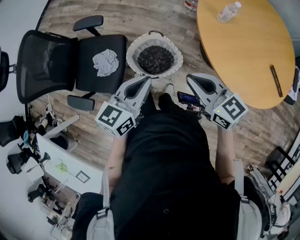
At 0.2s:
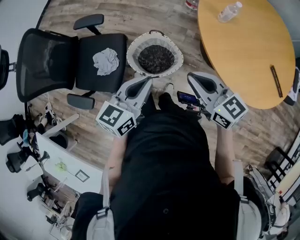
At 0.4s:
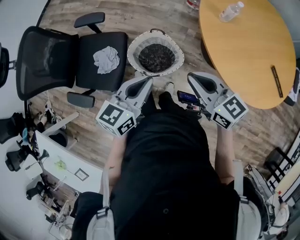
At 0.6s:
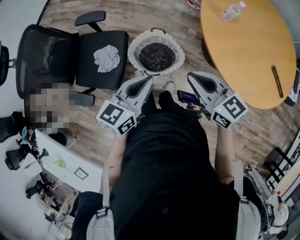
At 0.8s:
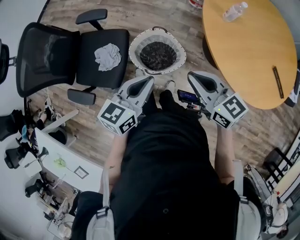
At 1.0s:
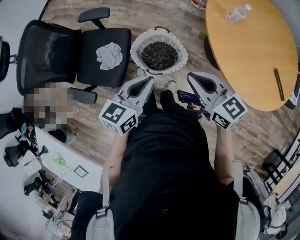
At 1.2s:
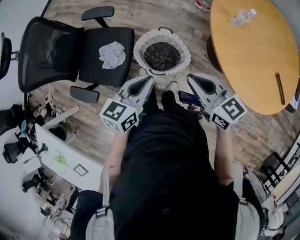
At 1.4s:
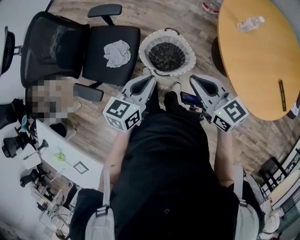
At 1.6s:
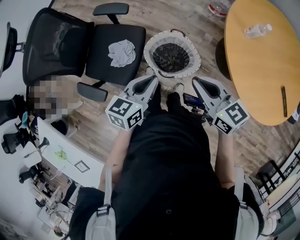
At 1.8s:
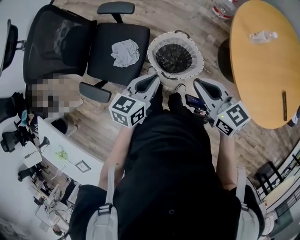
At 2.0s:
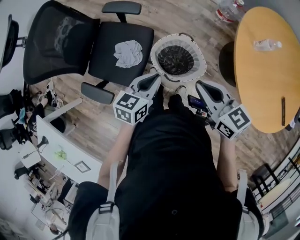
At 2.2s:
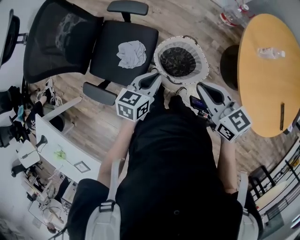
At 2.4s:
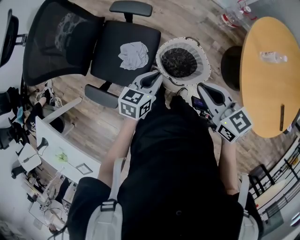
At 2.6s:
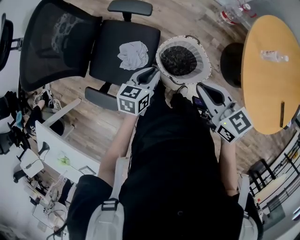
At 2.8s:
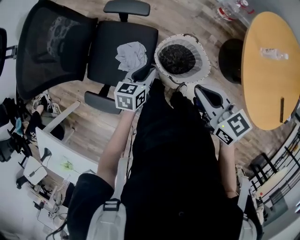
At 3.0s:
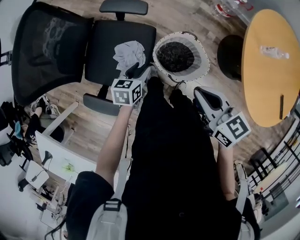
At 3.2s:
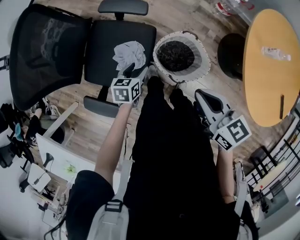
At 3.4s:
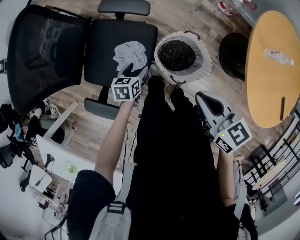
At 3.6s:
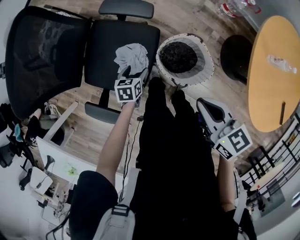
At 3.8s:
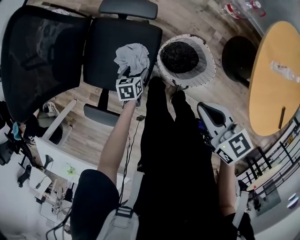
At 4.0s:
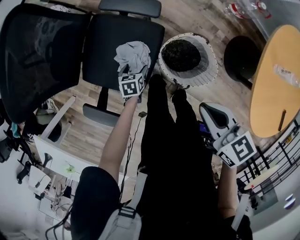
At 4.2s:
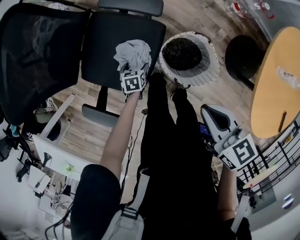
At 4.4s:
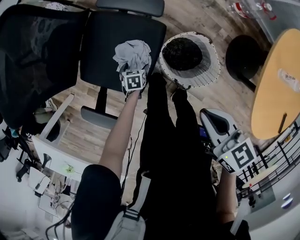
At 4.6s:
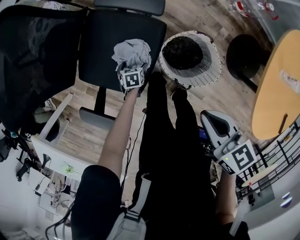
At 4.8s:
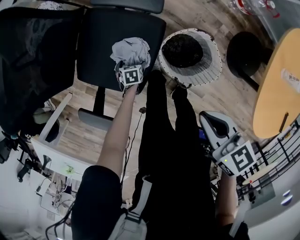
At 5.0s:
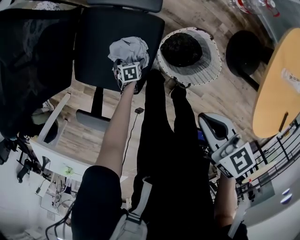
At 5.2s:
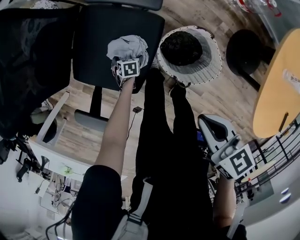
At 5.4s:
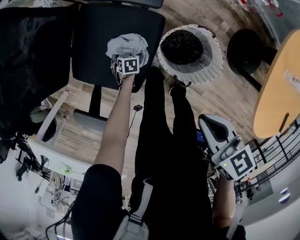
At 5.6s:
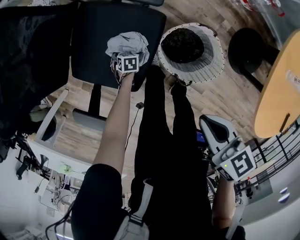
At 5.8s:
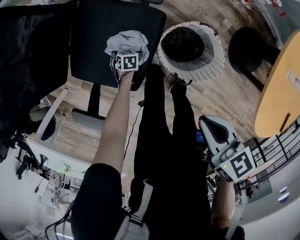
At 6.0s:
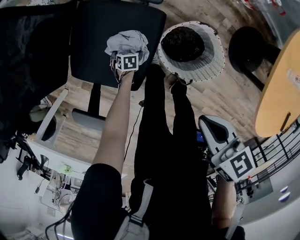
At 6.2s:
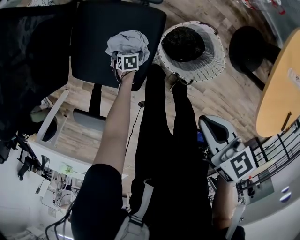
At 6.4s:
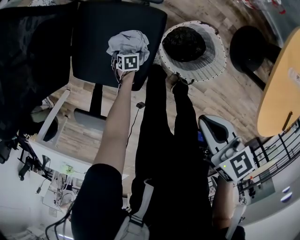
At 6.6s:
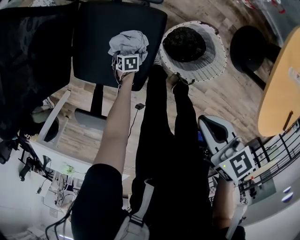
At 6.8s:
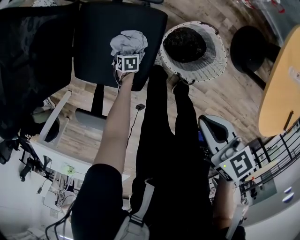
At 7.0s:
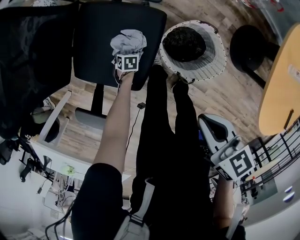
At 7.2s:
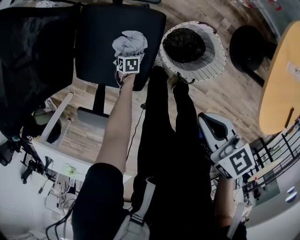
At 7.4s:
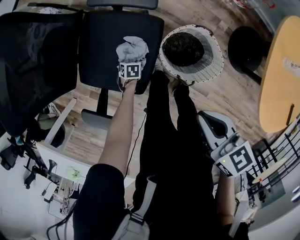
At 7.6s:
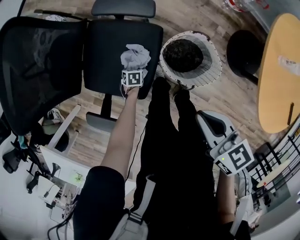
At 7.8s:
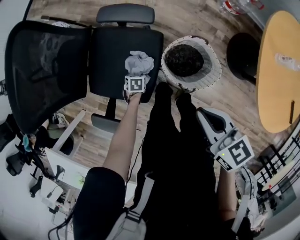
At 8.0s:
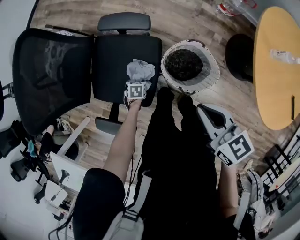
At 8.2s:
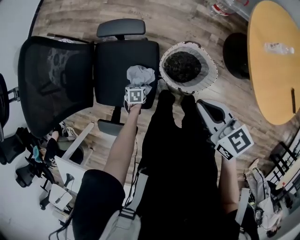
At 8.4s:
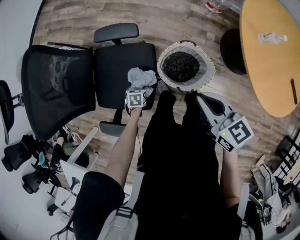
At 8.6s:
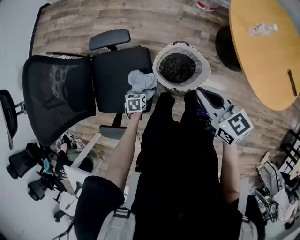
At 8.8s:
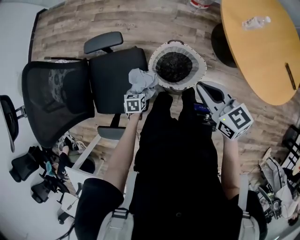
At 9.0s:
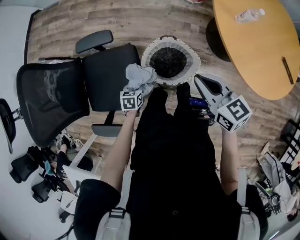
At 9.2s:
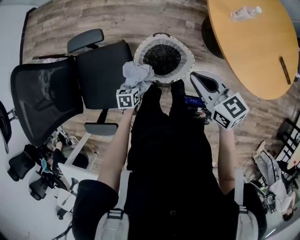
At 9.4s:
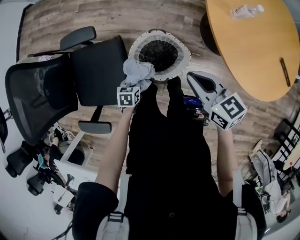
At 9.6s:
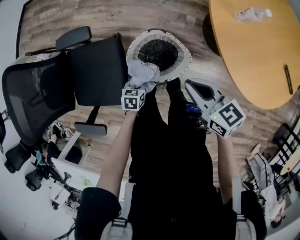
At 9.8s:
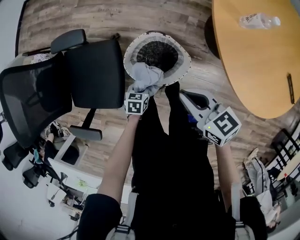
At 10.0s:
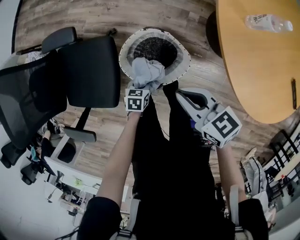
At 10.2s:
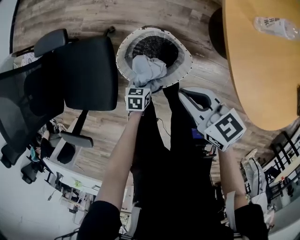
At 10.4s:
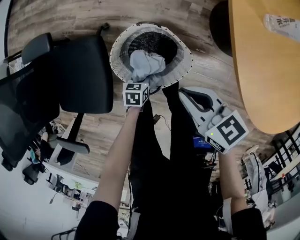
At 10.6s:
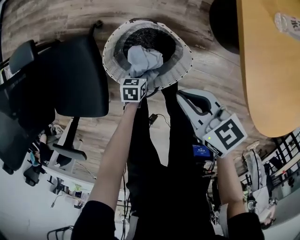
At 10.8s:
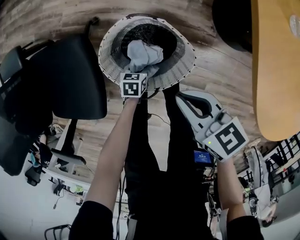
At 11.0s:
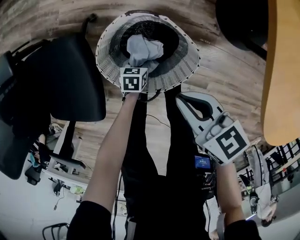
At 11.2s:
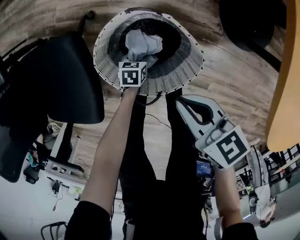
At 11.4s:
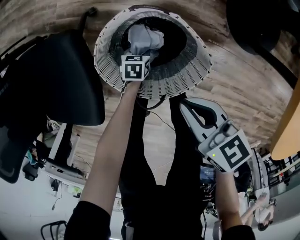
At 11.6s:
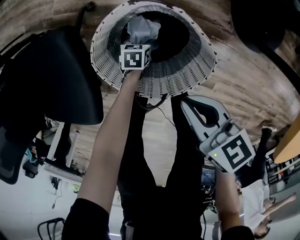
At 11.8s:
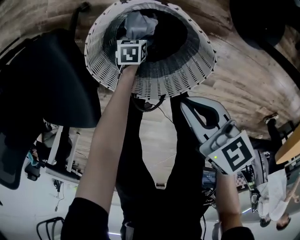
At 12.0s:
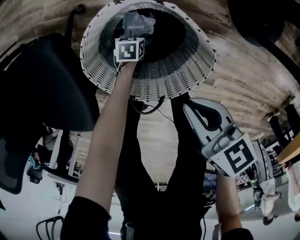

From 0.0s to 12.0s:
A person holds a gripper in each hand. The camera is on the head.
From 0.0s to 1.6s: The left gripper heads to the left and downward, covering about 10 cm, while the right gripper moves to the left, roughly 10 cm.
From 1.6s to 3.0s: The right gripper travels to the left and forward by some 15 cm. Meanwhile the left gripper moves to the left, downward and forward, about 30 cm.
From 3.0s to 4.4s: The left gripper heads downward, covering roughly 25 cm, rotates about 30 degrees, and opens up; the right gripper shifts approximately 10 cm forward and downward.
From 4.4s to 6.0s: The right gripper moves some 5 cm; the left gripper moves downward, approximately 10 cm.
From 6.0s to 7.6s: The left gripper is displaced upward by roughly 5 cm, and closes.
From 7.6s to 9.0s: The right gripper moves some 15 cm, and rotates approximately 20 degrees. Meanwhile the left gripper shifts approximately 20 cm upward, and rotates roughly 20 degrees.
From 9.0s to 10.4s: The right gripper moves downward and to the right, roughly 20 cm. Meanwhile the left gripper is displaced to the right and downward by about 25 cm.
From 10.4s to 12.0s: The two grippers go about 25 cm downward.

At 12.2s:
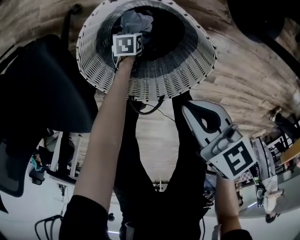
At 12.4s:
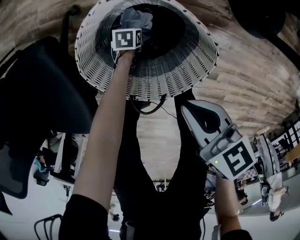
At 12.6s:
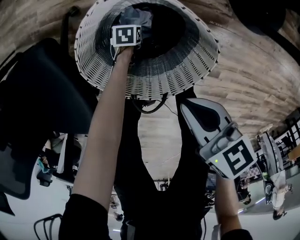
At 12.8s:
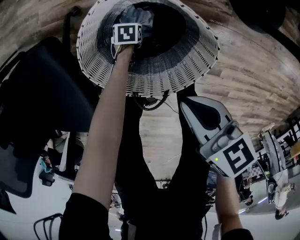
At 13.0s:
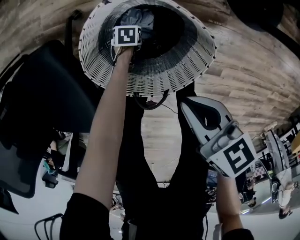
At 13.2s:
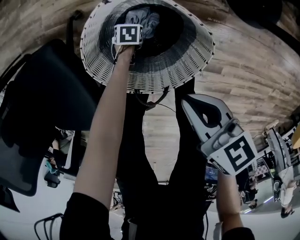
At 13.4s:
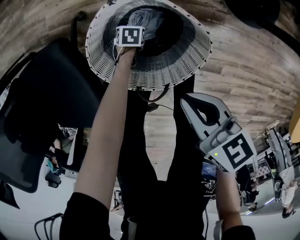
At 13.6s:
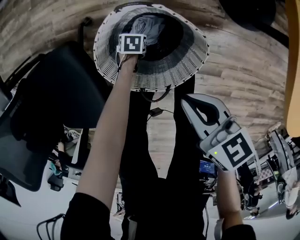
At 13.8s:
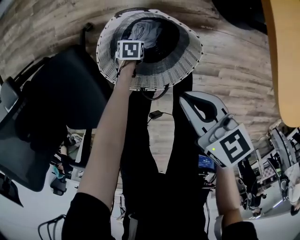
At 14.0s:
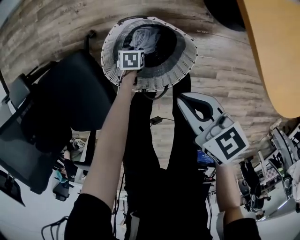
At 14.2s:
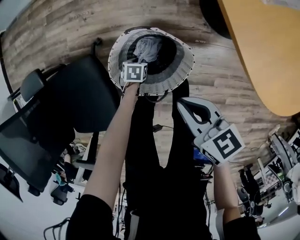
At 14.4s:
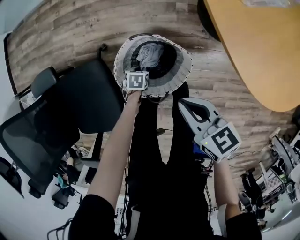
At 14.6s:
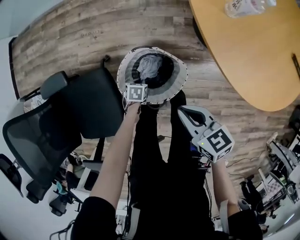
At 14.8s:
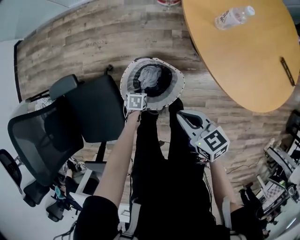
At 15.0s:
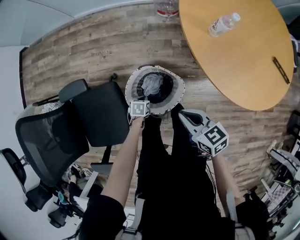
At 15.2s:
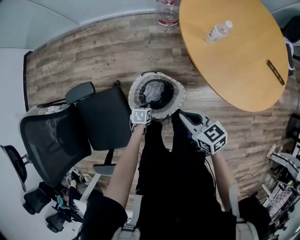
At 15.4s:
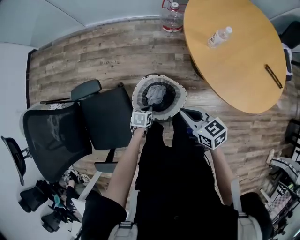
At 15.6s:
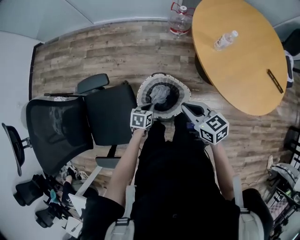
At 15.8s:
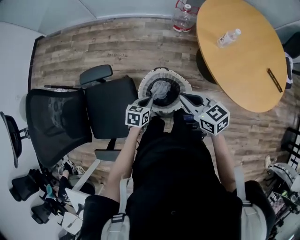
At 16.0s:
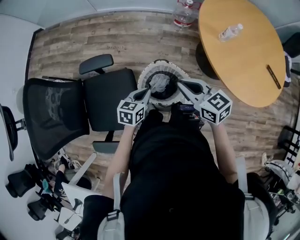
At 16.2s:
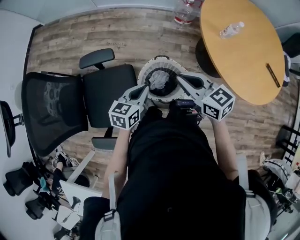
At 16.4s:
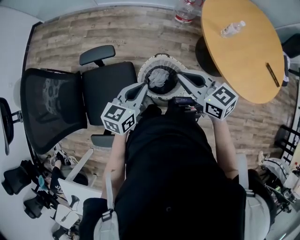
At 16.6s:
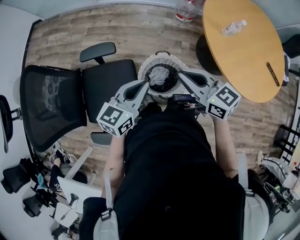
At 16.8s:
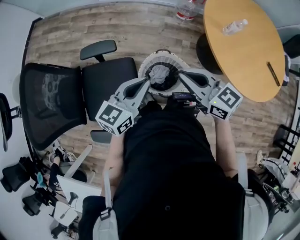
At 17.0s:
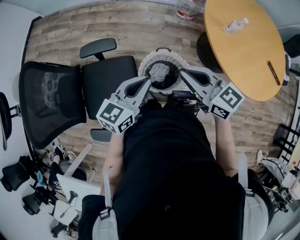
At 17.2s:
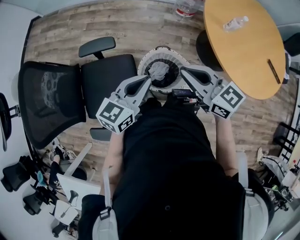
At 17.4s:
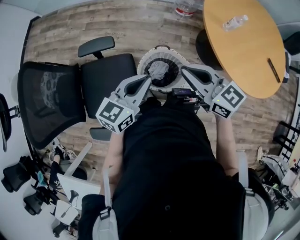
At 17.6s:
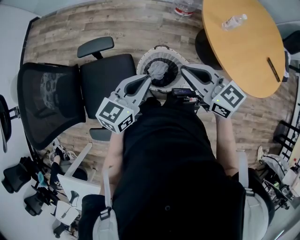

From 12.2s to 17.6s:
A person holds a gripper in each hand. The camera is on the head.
From 12.2s to 13.6s: The grippers both shift upward by approximately 10 cm.
From 13.6s to 15.0s: Both grippers move upward, some 30 cm.
From 15.0s to 16.2s: The left gripper moves upward, approximately 35 cm, and points its fingers about 40 degrees further upward. The right gripper shifts roughly 20 cm upward and to the left.
From 16.2s to 17.6s: The left gripper heads upward, covering some 10 cm.

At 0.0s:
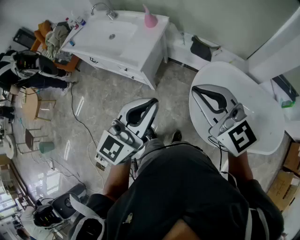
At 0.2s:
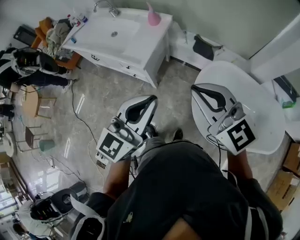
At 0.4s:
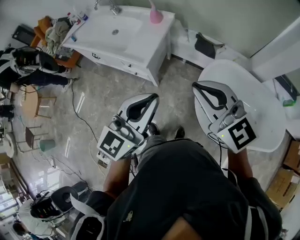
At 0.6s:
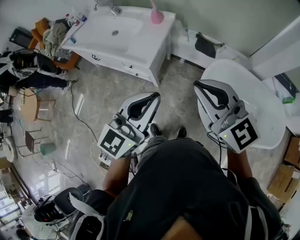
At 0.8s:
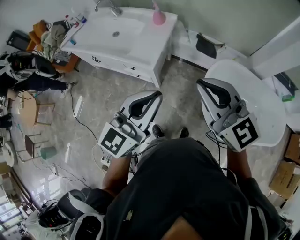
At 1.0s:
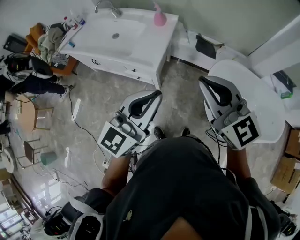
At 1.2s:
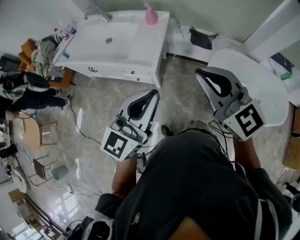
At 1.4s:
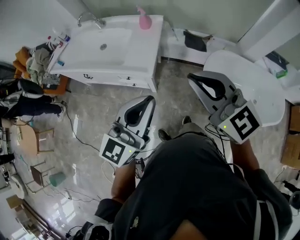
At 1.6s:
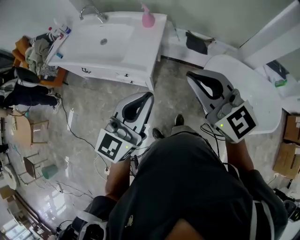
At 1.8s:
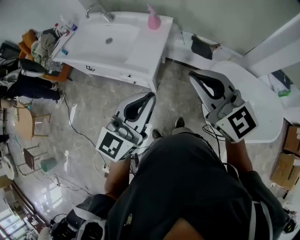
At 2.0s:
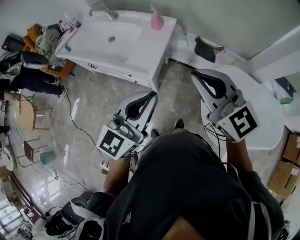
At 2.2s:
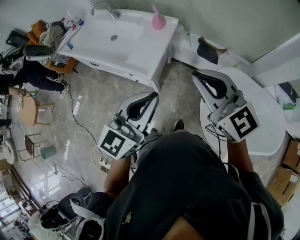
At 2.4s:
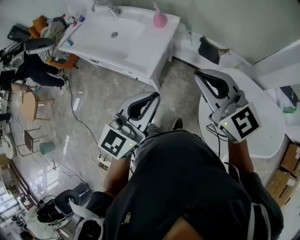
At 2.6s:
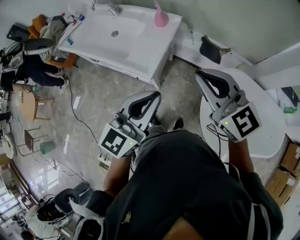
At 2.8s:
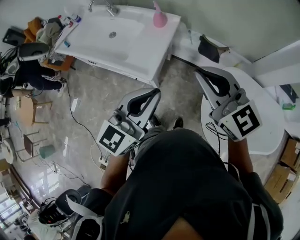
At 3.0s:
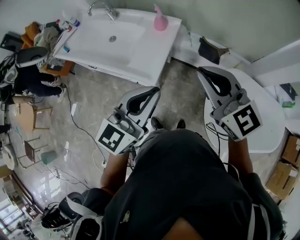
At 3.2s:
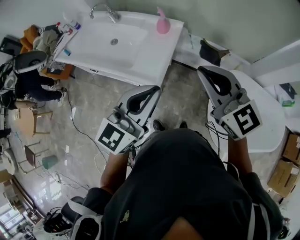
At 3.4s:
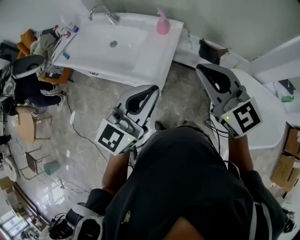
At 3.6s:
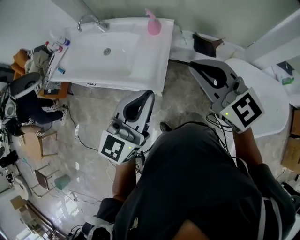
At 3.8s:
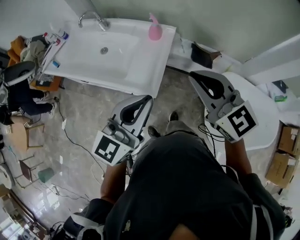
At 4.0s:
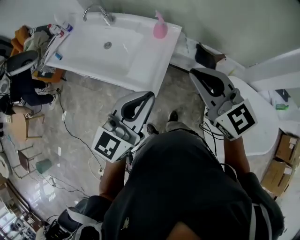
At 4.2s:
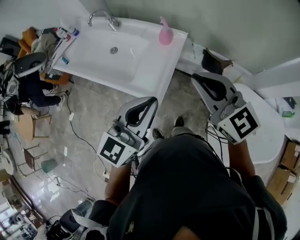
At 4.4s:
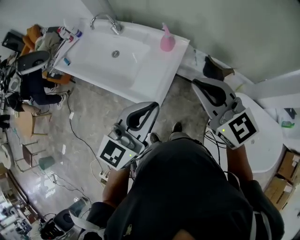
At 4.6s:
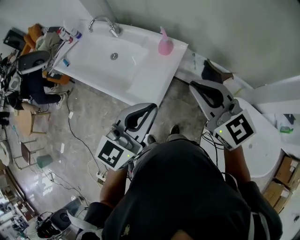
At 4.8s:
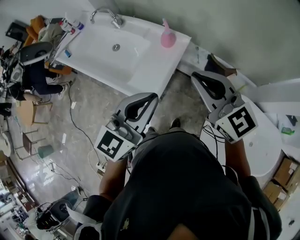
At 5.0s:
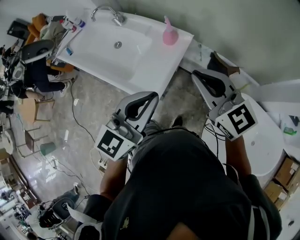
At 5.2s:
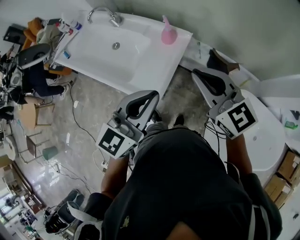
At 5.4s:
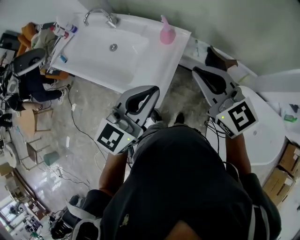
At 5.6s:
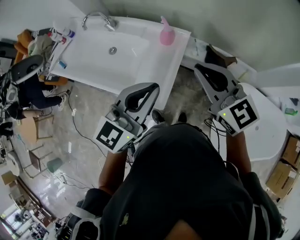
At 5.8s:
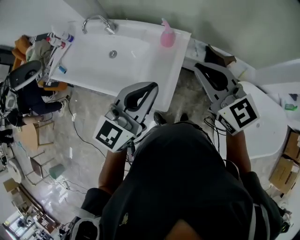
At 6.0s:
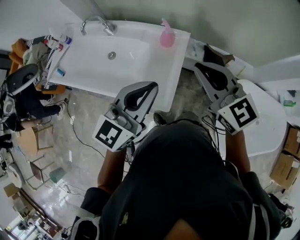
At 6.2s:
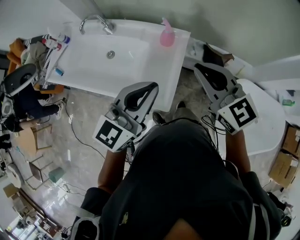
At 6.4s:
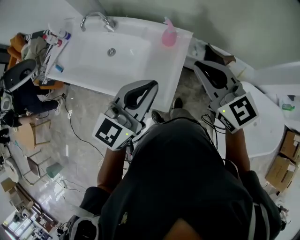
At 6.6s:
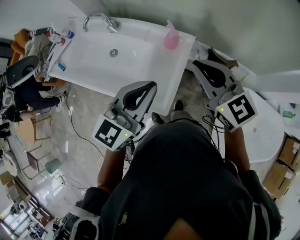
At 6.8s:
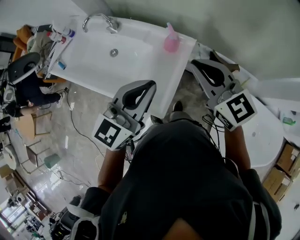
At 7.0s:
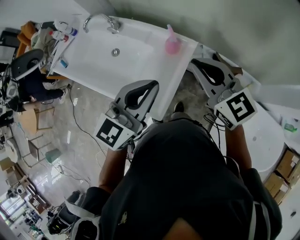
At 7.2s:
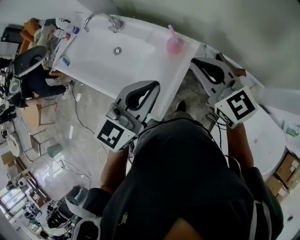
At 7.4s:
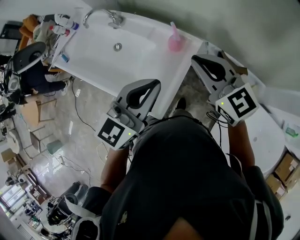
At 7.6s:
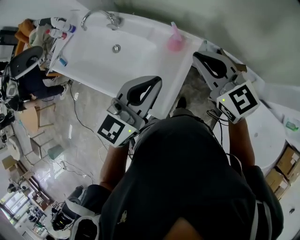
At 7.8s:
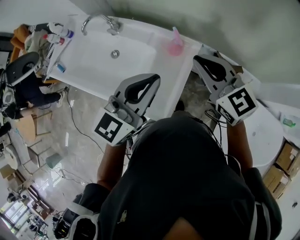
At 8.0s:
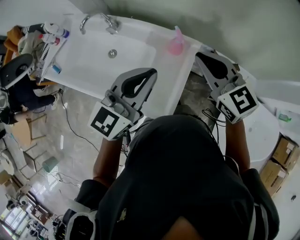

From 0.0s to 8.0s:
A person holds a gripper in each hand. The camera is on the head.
From 0.0s to 1.6s: Both grippers move to the left and forward, approximately 20 cm.
From 1.6s to 3.2s: The two grippers go roughly 10 cm forward.
From 3.2s to 4.8s: Both grippers move forward, roughly 15 cm.
From 4.8s to 6.4s: The grippers both shift to the left and forward by about 10 cm.
From 6.4s to 8.0s: The two grippers go approximately 10 cm forward.
